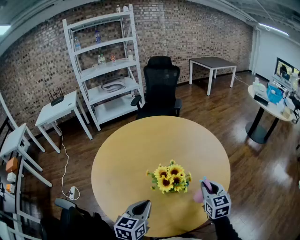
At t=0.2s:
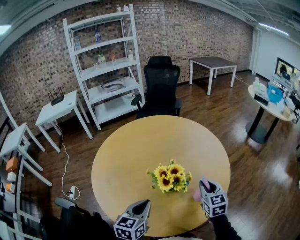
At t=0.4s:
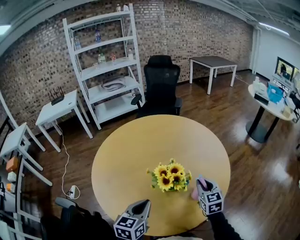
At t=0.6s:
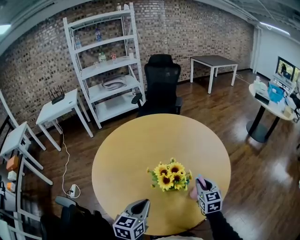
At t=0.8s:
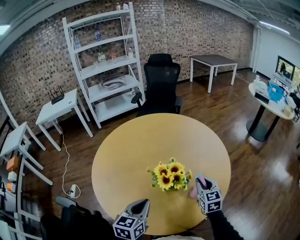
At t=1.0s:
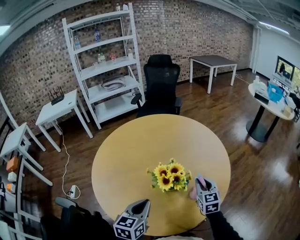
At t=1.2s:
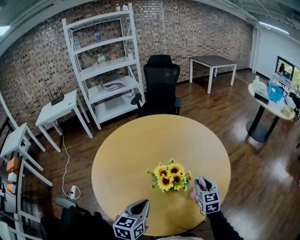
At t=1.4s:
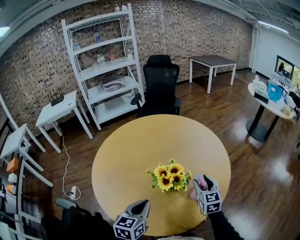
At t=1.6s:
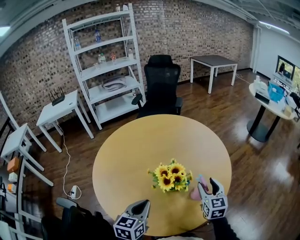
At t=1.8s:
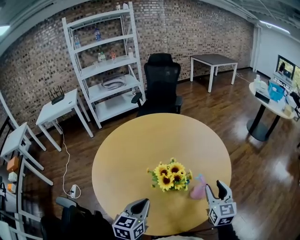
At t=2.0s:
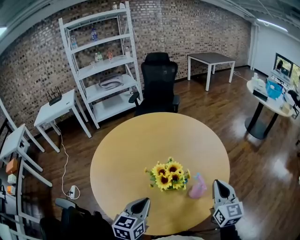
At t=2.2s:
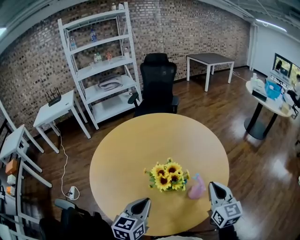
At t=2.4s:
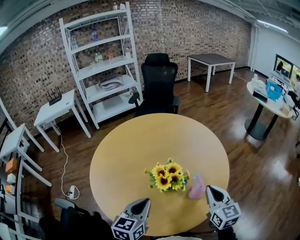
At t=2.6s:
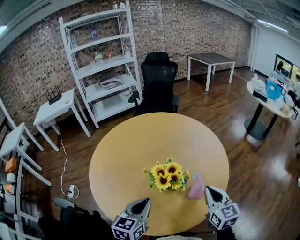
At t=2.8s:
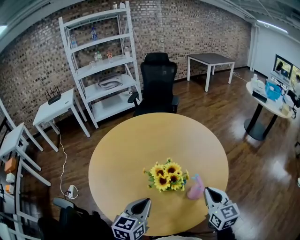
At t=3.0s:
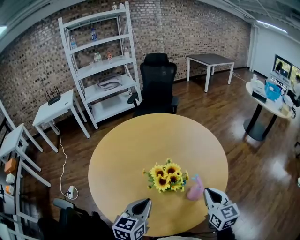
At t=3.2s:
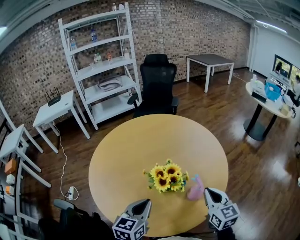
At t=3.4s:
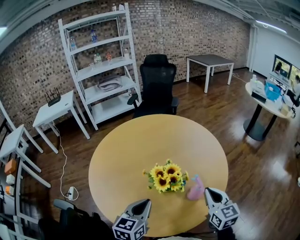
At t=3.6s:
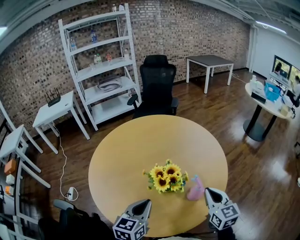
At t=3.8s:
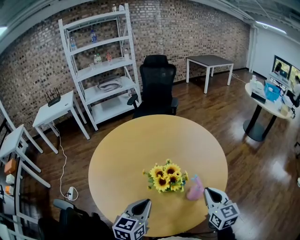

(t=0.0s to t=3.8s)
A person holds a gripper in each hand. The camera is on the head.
t=0.0s - t=1.2s: The right gripper shifts by some 5 cm.
t=1.2s - t=2.6s: The right gripper travels upward and backward by some 10 cm, and opens, then closes again.
t=2.6s - t=3.8s: The grippers move only a little.

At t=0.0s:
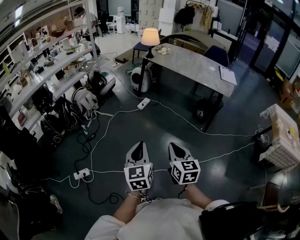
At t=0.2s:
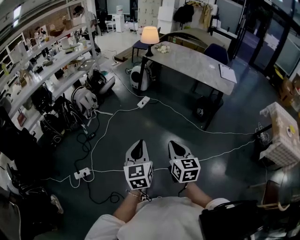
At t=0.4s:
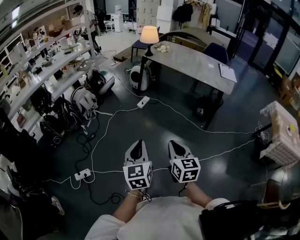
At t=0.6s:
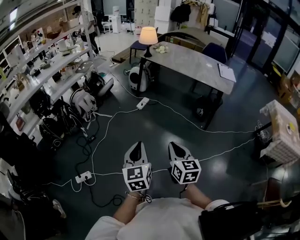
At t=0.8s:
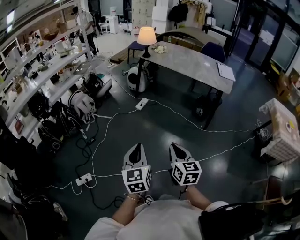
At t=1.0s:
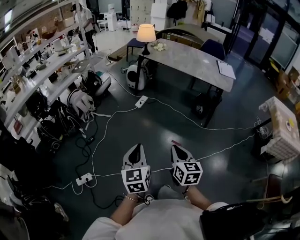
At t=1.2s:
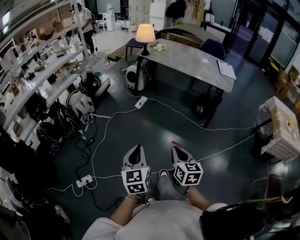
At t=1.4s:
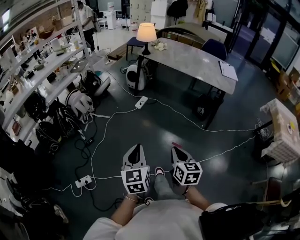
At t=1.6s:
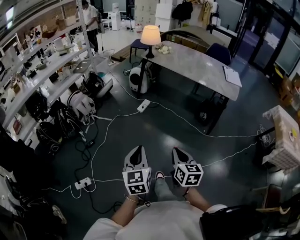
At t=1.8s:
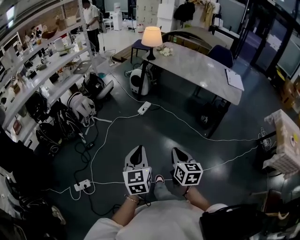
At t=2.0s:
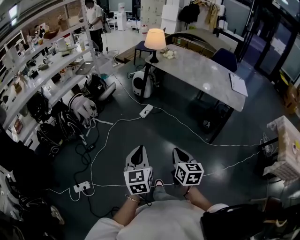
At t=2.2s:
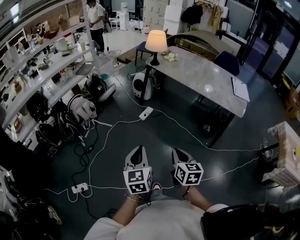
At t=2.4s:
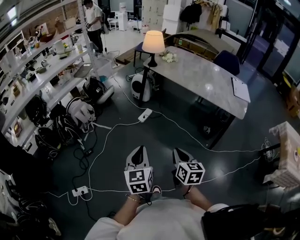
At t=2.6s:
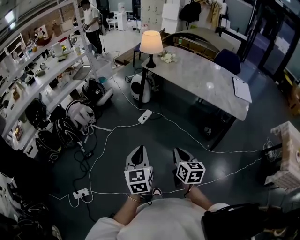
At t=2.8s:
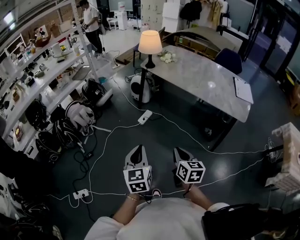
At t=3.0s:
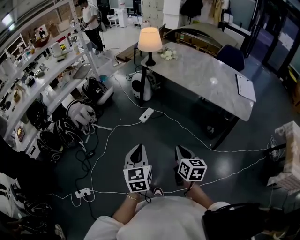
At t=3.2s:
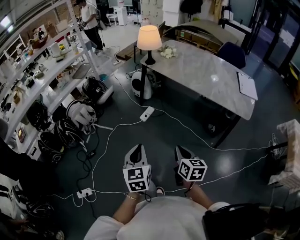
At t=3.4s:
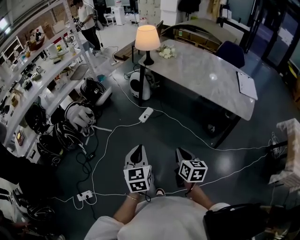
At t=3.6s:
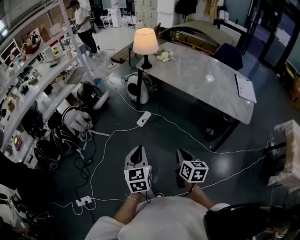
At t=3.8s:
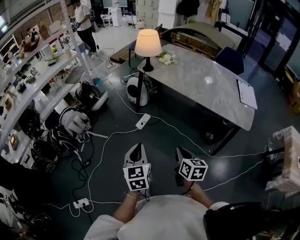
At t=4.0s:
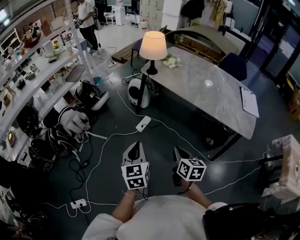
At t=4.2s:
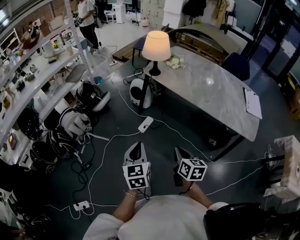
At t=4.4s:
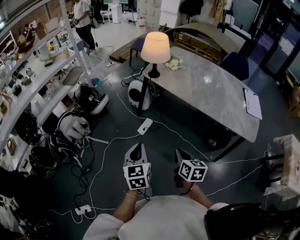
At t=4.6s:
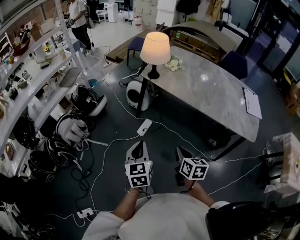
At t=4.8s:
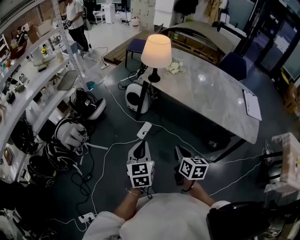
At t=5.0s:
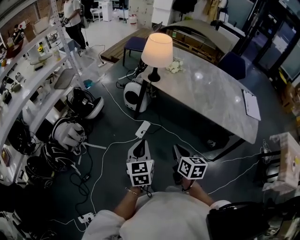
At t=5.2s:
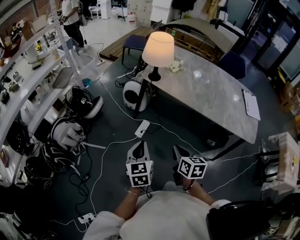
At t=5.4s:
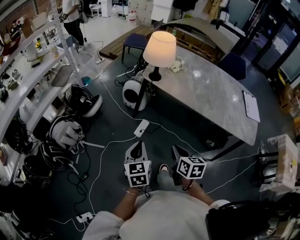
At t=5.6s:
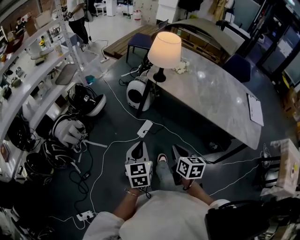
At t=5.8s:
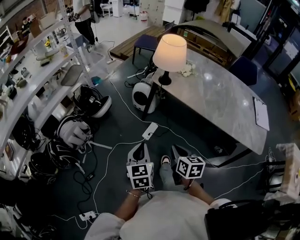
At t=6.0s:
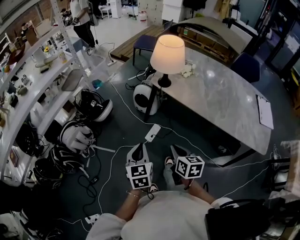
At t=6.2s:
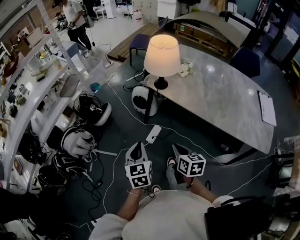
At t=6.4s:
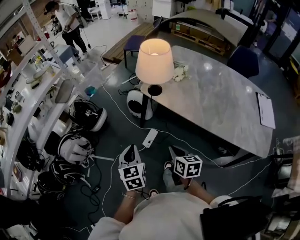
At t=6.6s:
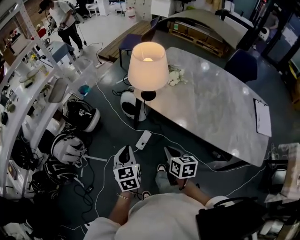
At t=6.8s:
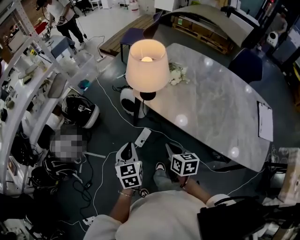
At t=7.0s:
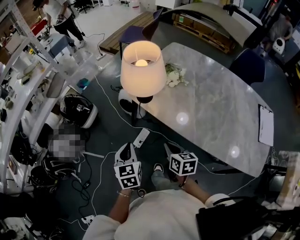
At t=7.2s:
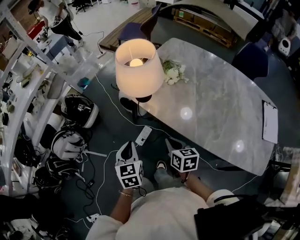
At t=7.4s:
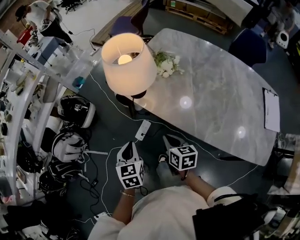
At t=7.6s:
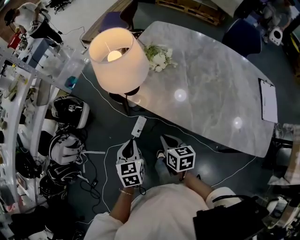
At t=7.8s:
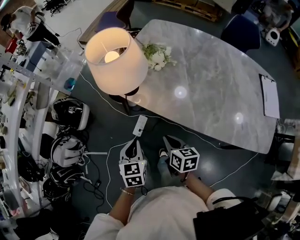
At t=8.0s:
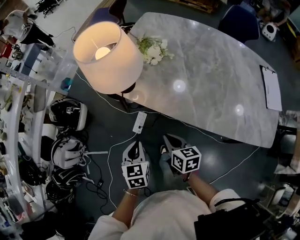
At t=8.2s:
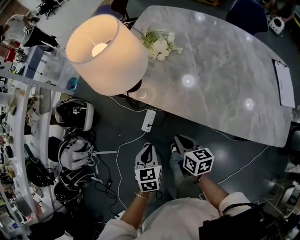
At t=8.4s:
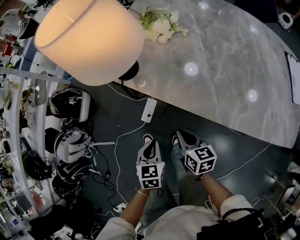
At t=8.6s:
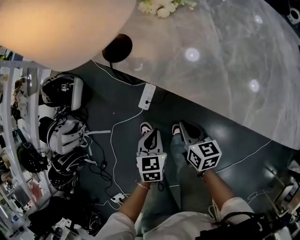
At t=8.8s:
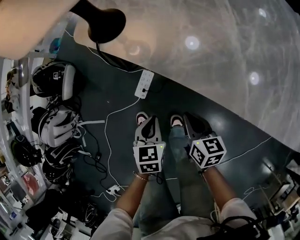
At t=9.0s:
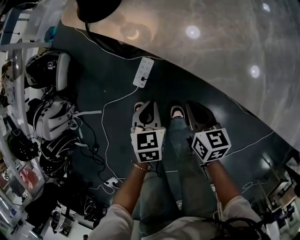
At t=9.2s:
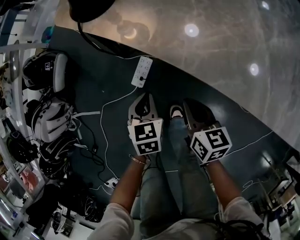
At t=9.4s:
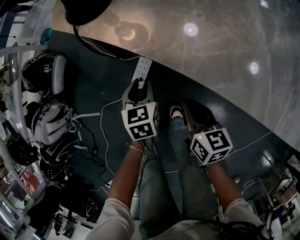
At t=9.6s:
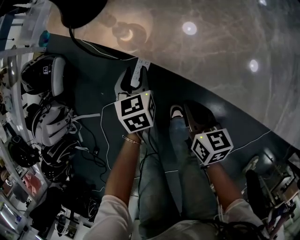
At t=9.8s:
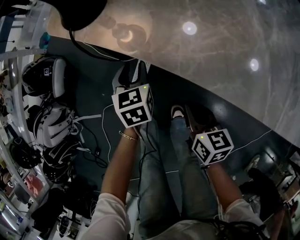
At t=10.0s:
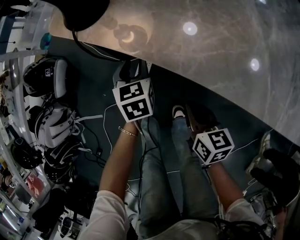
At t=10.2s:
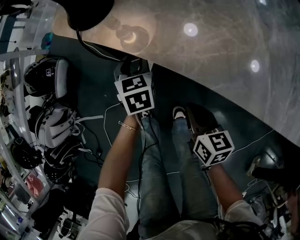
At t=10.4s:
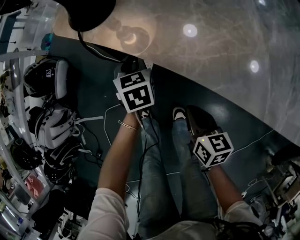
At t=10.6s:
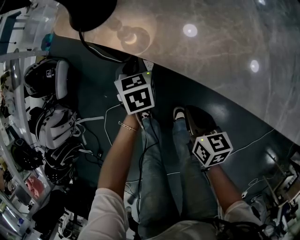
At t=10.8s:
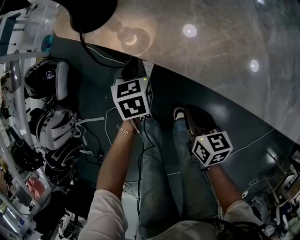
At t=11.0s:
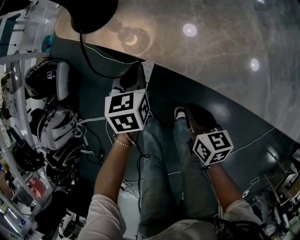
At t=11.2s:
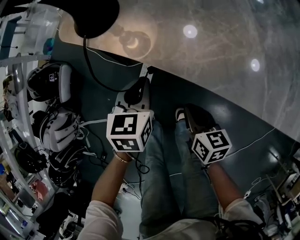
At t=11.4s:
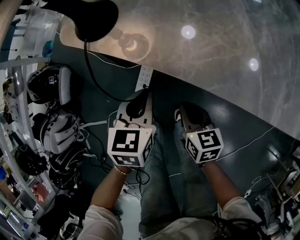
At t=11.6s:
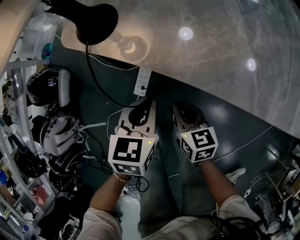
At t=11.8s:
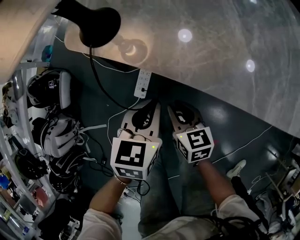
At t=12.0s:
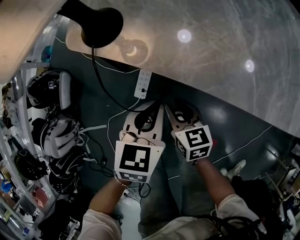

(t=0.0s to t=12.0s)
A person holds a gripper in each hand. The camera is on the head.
t=0.0s - t=1.6s: The left gripper heads forward, covering approximately 10 cm. Meanwhile the right gripper travels forward and downward by roughly 10 cm.
t=1.6s - t=3.0s: The two grippers go some 25 cm forward and to the right.
t=3.0s - t=4.4s: The two grippers go roughly 25 cm forward.
t=4.4s - t=6.0s: The right gripper heads forward and to the left, covering about 20 cm. The left gripper is displaced forward by some 15 cm.
t=6.0s - t=7.6s: The right gripper is displaced forward and to the right by approximately 25 cm; the left gripper heads forward, to the right and downward, covering approximately 25 cm.
t=7.6s - t=9.0s: Both grippers move downward, some 30 cm.
t=9.0s - t=10.4s: The left gripper goes approximately 20 cm forward, and opens, then closes once more.
t=10.4s - t=12.0s: The left gripper shifts some 20 cm upward, backward and to the right, and changes its angle by approximately 30 degrees, while the right gripper travels to the left by some 5 cm, and opens up.

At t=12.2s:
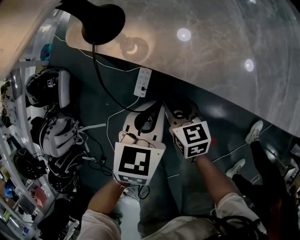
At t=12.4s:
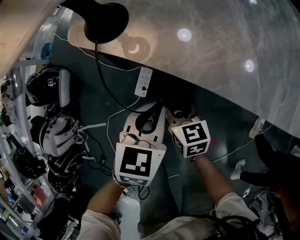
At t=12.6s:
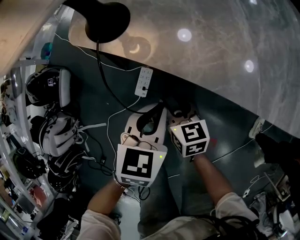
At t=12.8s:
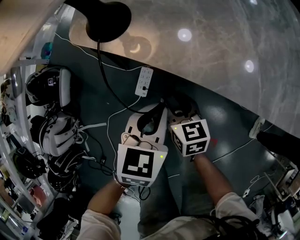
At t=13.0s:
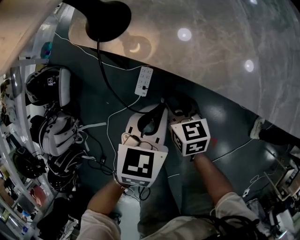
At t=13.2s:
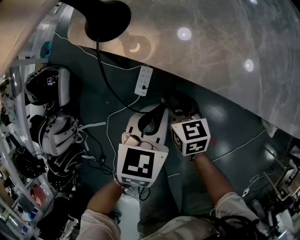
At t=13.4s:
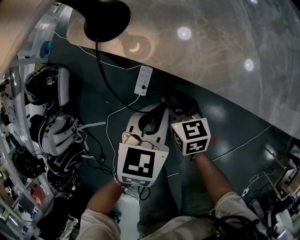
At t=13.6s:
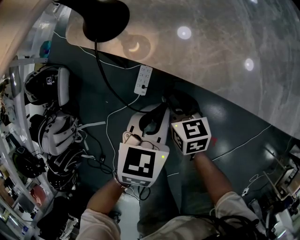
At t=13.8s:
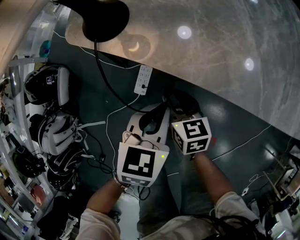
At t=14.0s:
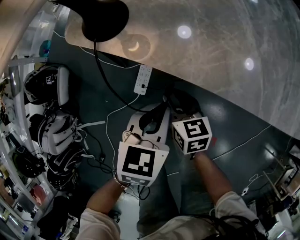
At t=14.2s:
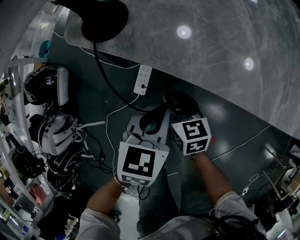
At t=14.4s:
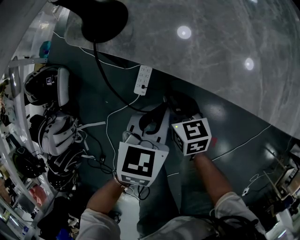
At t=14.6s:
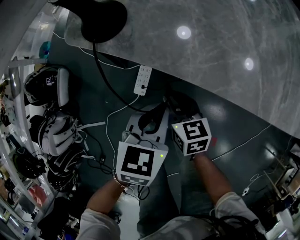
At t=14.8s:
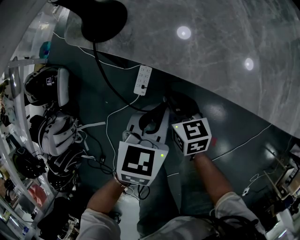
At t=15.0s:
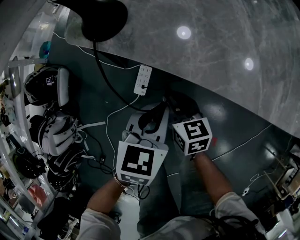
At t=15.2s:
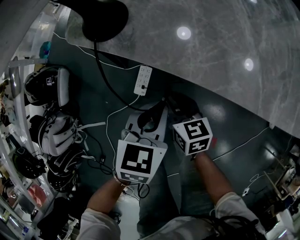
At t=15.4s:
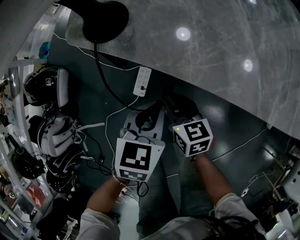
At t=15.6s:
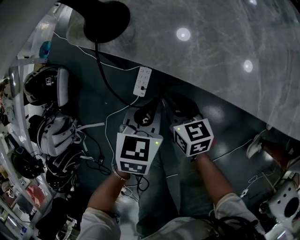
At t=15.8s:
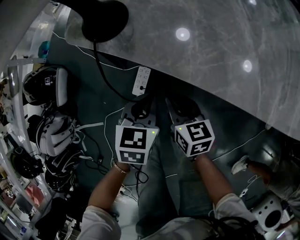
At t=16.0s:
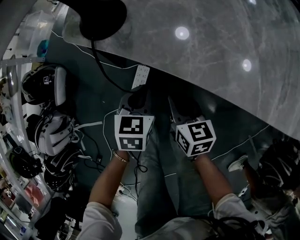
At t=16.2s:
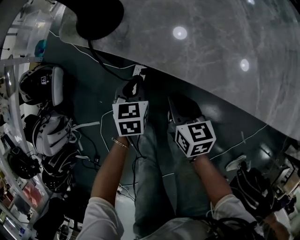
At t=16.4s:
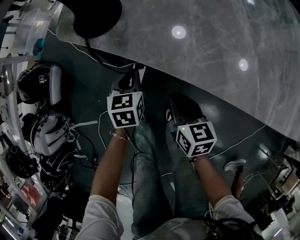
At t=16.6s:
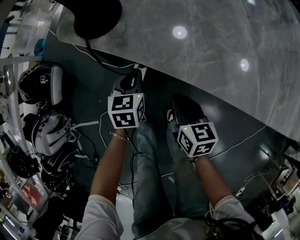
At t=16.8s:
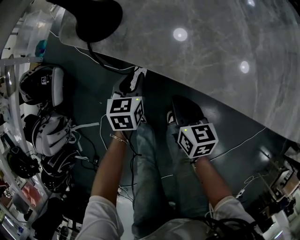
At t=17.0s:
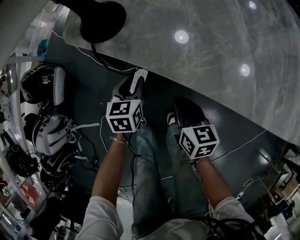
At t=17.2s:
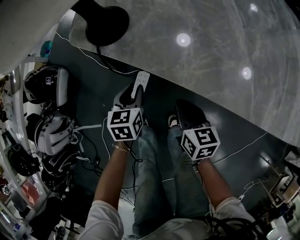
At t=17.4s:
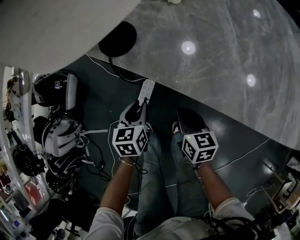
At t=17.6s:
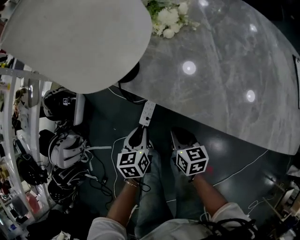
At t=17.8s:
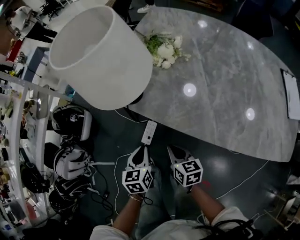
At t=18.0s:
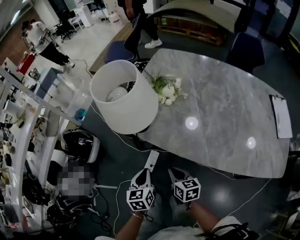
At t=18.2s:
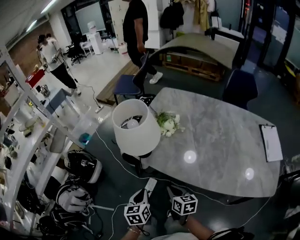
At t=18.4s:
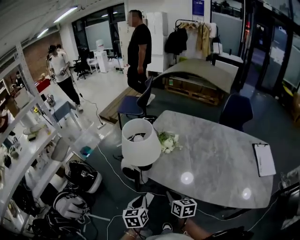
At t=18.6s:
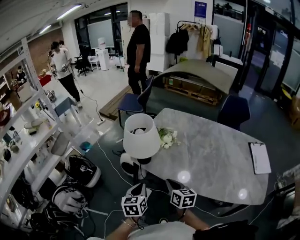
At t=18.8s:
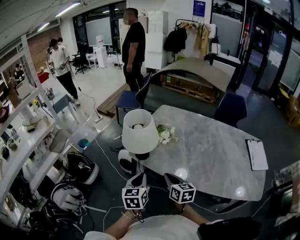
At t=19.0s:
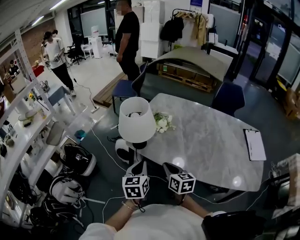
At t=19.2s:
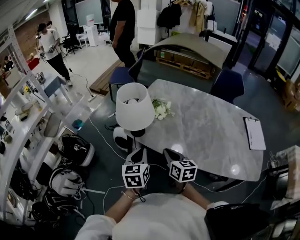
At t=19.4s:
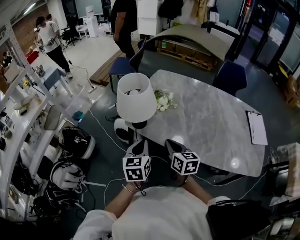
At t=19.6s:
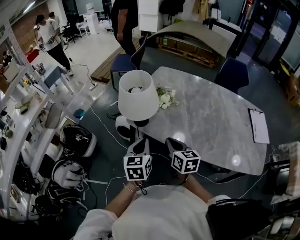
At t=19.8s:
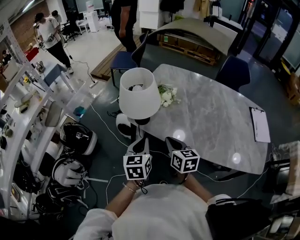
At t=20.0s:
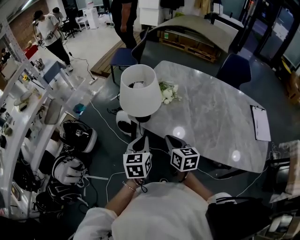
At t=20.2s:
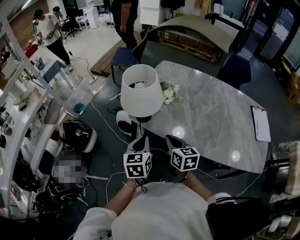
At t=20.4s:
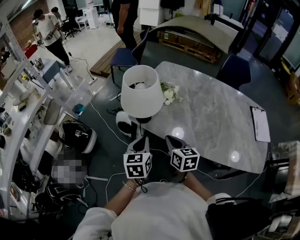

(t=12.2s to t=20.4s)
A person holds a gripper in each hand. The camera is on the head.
t=12.2s - t=15.4s: The grippers stay close to where they were, moving slightly.
t=15.4s - t=17.2s: The left gripper shifts roughly 15 cm downward, to the left and forward, changes its angle by about 20 degrees, and opens its fingers, while the right gripper shifts about 5 cm to the right, and closes up.
t=17.2s - t=18.8s: The grippers both shift upward by some 40 cm. The left gripper rotates approximately 20 degrees, and closes.
t=18.8s - t=20.4s: There are only small adjustments of the grippers.
